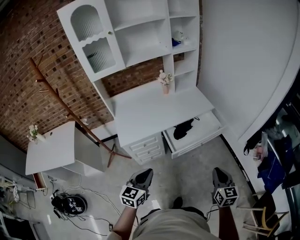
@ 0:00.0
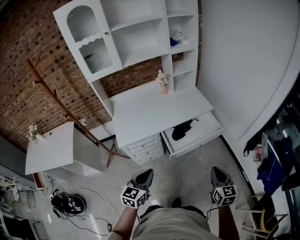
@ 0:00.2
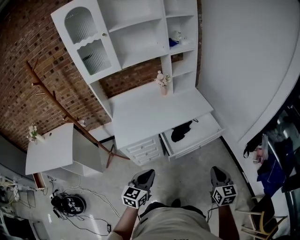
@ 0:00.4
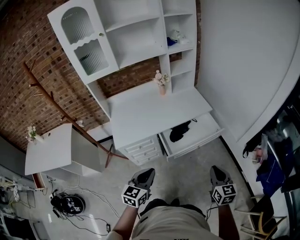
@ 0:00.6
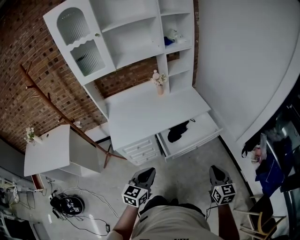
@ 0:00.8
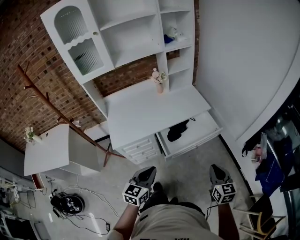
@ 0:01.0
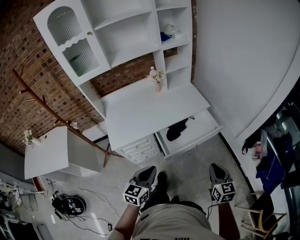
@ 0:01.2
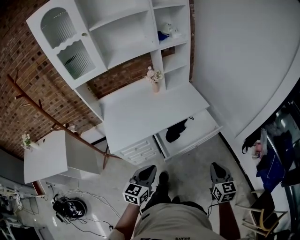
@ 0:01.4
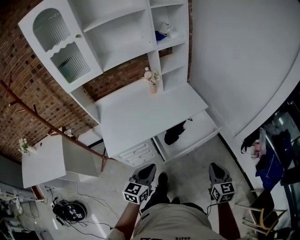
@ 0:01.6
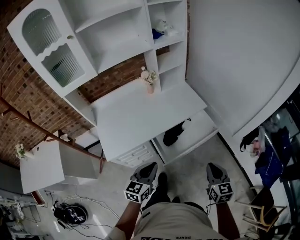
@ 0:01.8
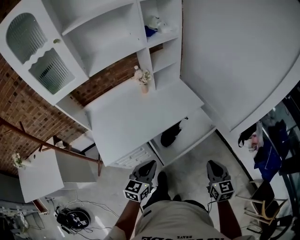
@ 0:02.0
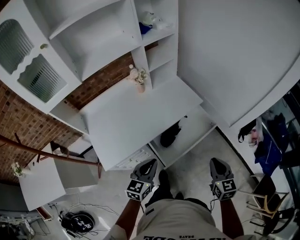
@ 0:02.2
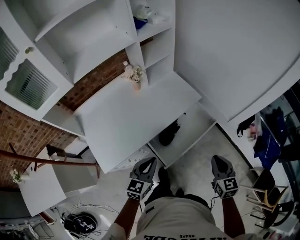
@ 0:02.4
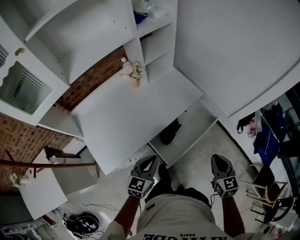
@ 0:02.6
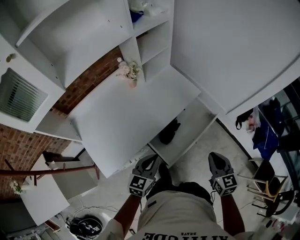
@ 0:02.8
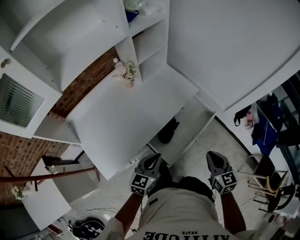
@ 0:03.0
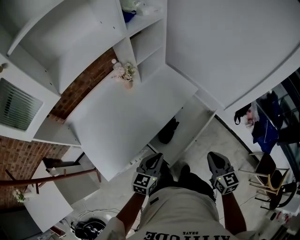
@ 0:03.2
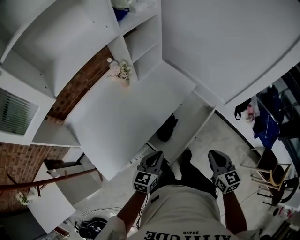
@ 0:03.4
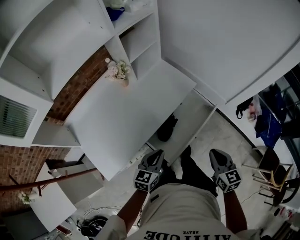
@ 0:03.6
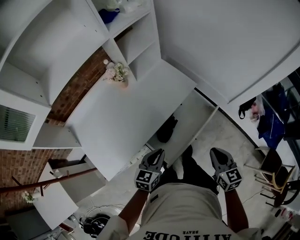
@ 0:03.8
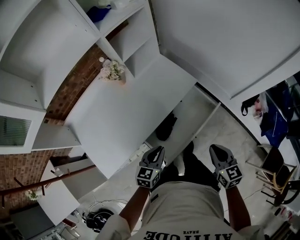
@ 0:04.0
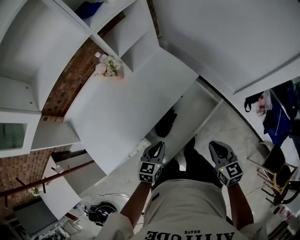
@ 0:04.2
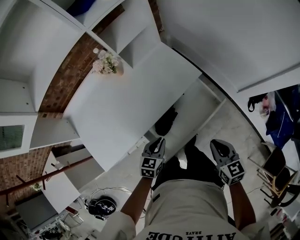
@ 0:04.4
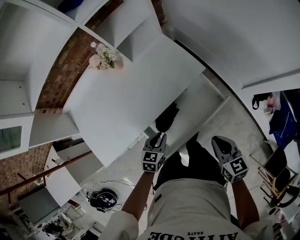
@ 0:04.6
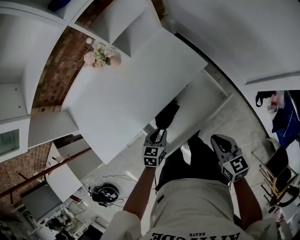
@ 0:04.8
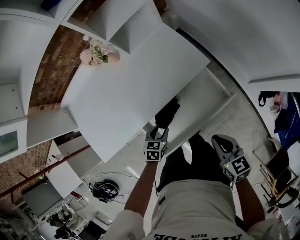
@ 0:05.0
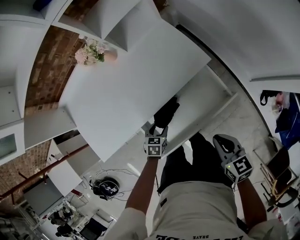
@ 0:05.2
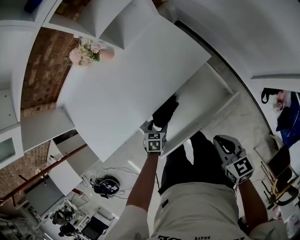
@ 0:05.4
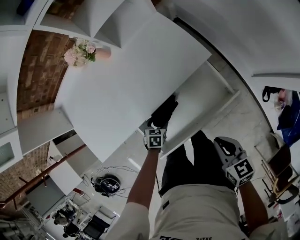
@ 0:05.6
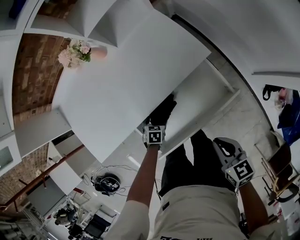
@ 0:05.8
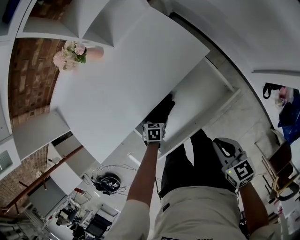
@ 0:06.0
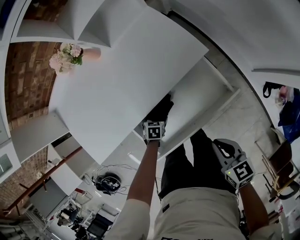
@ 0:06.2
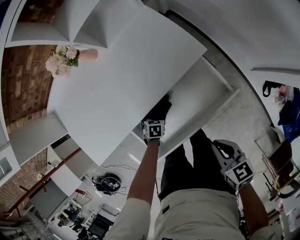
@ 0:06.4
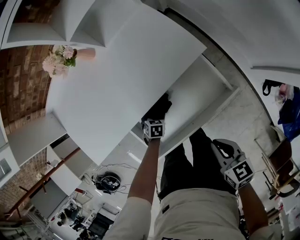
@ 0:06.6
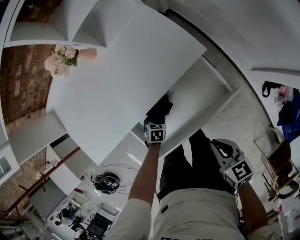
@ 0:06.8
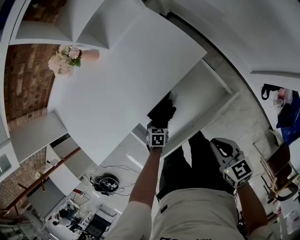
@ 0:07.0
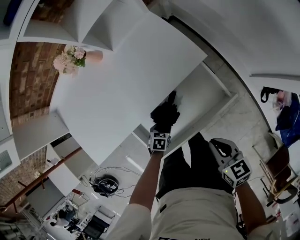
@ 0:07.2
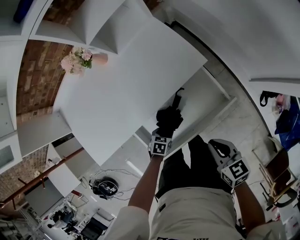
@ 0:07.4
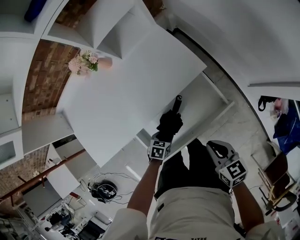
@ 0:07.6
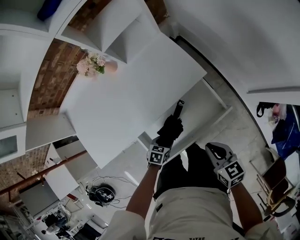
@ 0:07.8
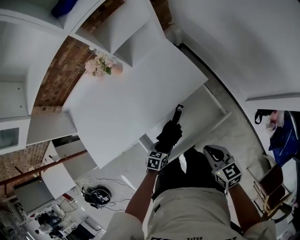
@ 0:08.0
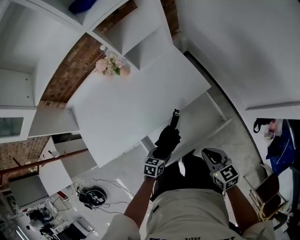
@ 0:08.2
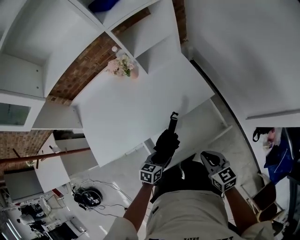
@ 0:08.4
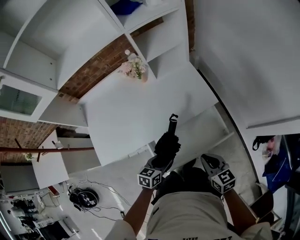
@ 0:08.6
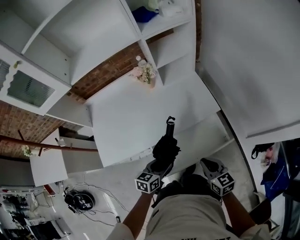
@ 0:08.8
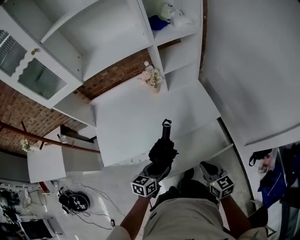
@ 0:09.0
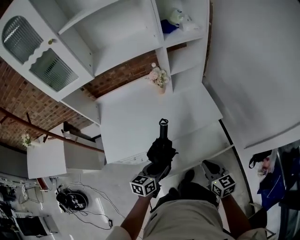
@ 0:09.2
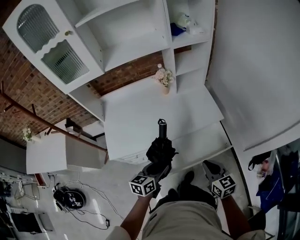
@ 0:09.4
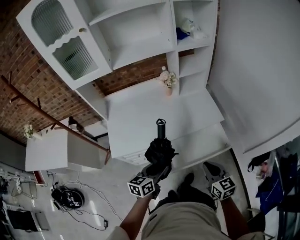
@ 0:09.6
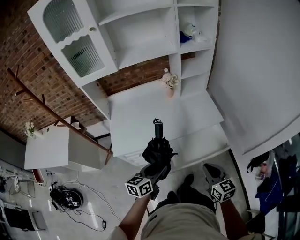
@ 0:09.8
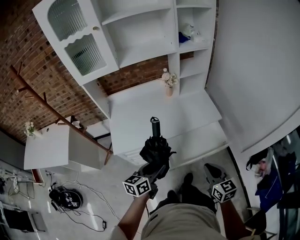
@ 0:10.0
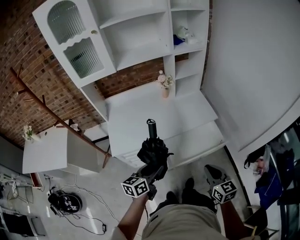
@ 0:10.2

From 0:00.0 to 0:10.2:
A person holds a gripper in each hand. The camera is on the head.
From 0:00.0 to 0:01.4: The right gripper heads forward, covering some 10 cm. Meanwhile the left gripper goes approximately 15 cm forward and to the right.
From 0:01.4 to 0:03.0: The left gripper goes approximately 20 cm forward, and turns by roughly 20 degrees. Meanwhile the right gripper goes roughly 15 cm forward and to the left.
From 0:03.0 to 0:04.4: The right gripper shifts about 15 cm forward, downward and to the right. Meanwhile the left gripper travels downward, forward and to the right by about 20 cm, and rotates roughly 20 degrees.
From 0:04.4 to 0:05.8: The right gripper is displaced downward by roughly 10 cm. The left gripper shifts some 25 cm downward, tips its fingers downward by about 30 degrees, and opens.
From 0:05.8 to 0:07.2: The left gripper shifts by roughly 5 cm, and closes its fingers.
From 0:07.2 to 0:08.8: The left gripper shifts roughly 30 cm upward, and points its fingers about 40 degrees further upward. The right gripper travels upward and to the left by approximately 15 cm.
From 0:08.8 to 0:10.2: The right gripper goes about 20 cm backward and upward; the left gripper shifts approximately 25 cm backward, upward and to the left, and rotates about 20 degrees.

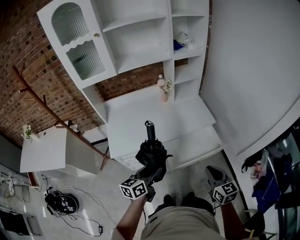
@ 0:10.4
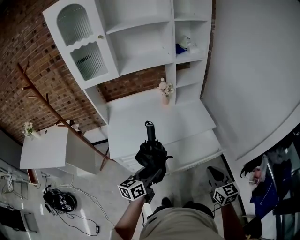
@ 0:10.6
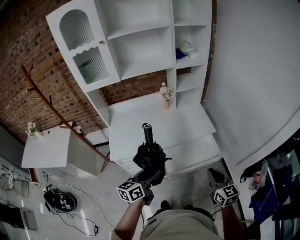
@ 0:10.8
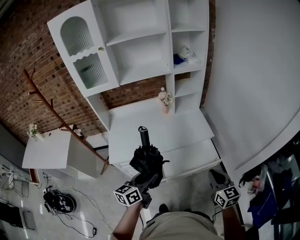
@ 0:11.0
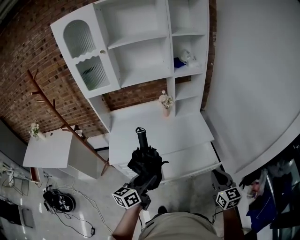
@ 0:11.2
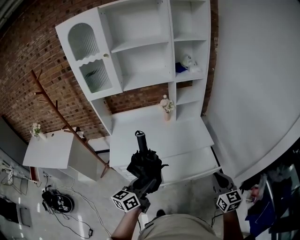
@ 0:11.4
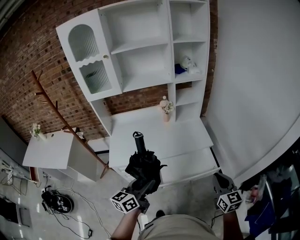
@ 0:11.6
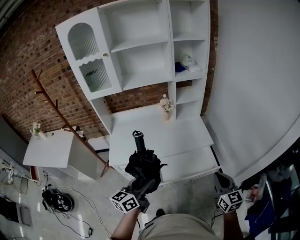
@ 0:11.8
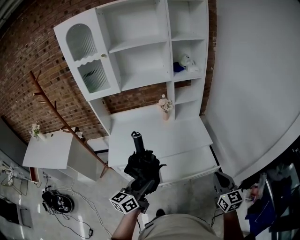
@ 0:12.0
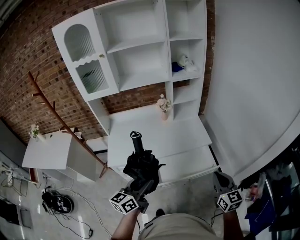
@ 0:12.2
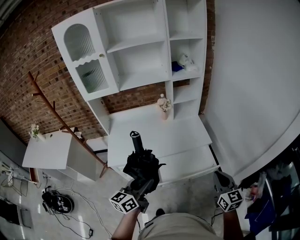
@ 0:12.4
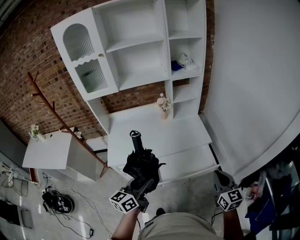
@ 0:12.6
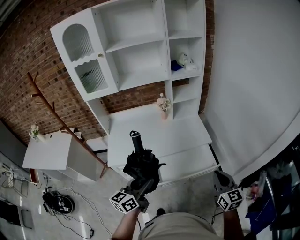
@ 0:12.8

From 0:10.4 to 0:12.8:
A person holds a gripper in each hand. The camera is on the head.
From 0:10.4 to 0:11.6: The left gripper goes roughly 10 cm upward. Meanwhile the right gripper is displaced to the right and upward by about 10 cm.
From 0:11.6 to 0:12.8: The two grippers keep their place.

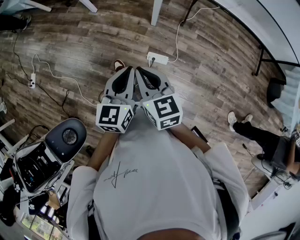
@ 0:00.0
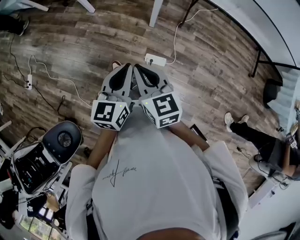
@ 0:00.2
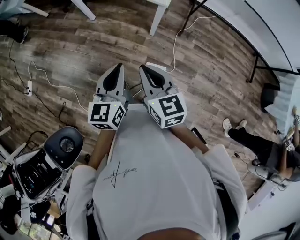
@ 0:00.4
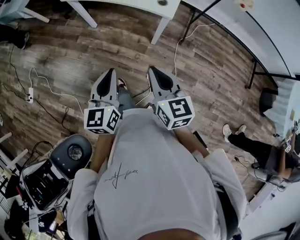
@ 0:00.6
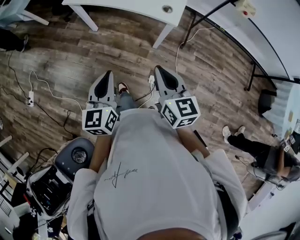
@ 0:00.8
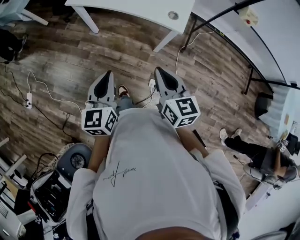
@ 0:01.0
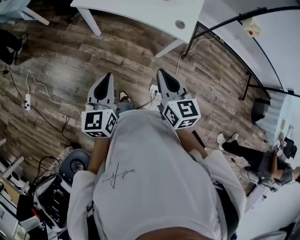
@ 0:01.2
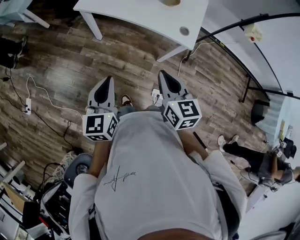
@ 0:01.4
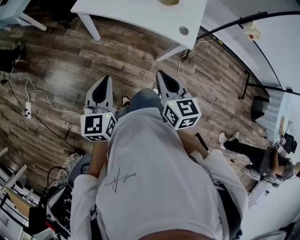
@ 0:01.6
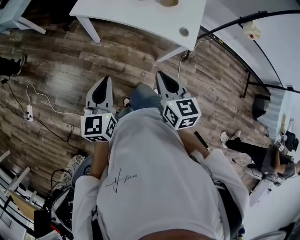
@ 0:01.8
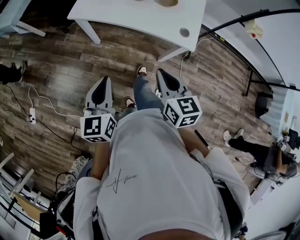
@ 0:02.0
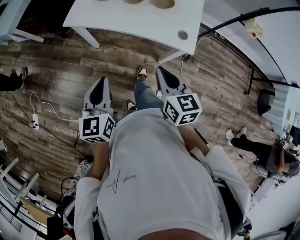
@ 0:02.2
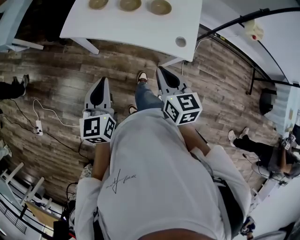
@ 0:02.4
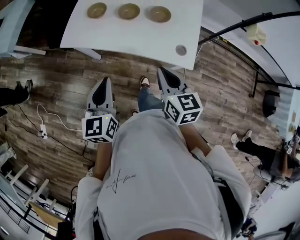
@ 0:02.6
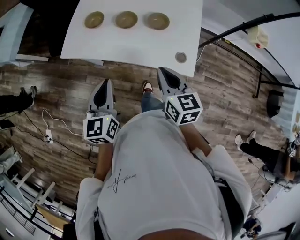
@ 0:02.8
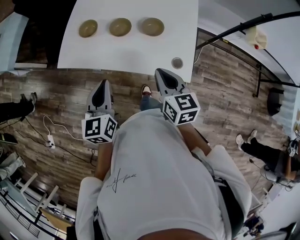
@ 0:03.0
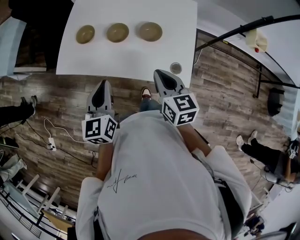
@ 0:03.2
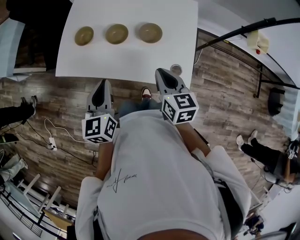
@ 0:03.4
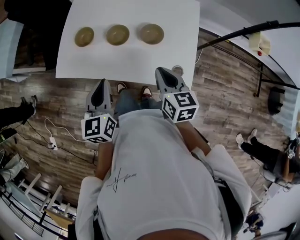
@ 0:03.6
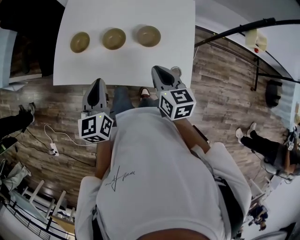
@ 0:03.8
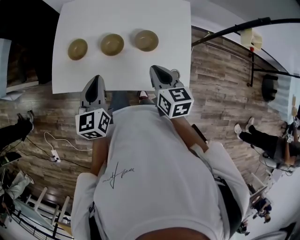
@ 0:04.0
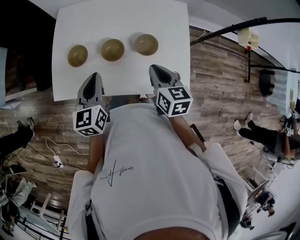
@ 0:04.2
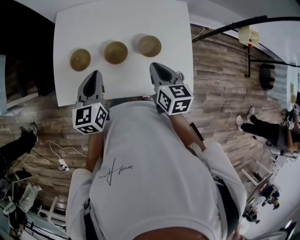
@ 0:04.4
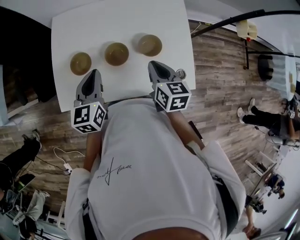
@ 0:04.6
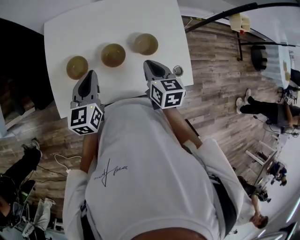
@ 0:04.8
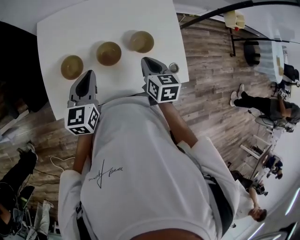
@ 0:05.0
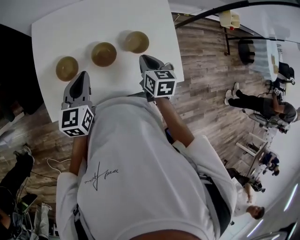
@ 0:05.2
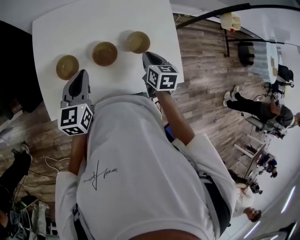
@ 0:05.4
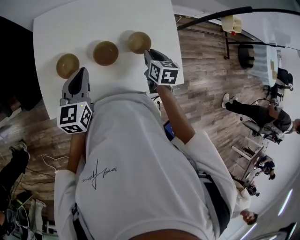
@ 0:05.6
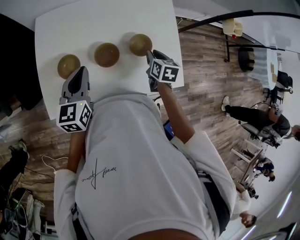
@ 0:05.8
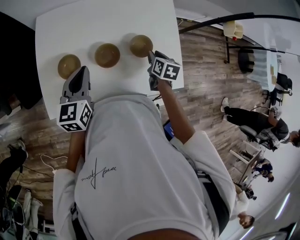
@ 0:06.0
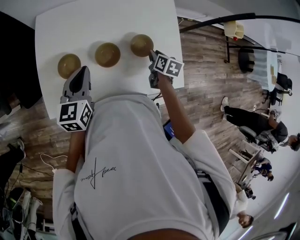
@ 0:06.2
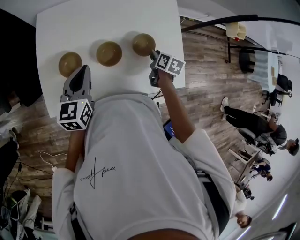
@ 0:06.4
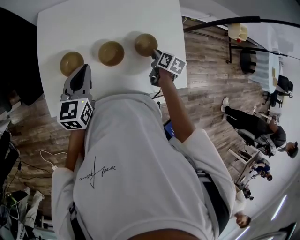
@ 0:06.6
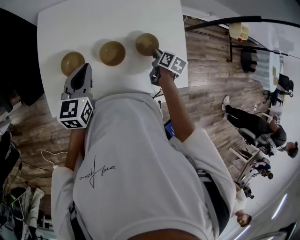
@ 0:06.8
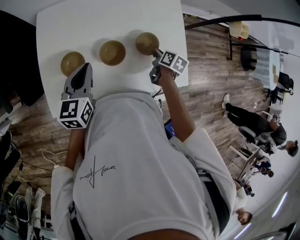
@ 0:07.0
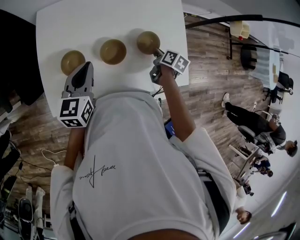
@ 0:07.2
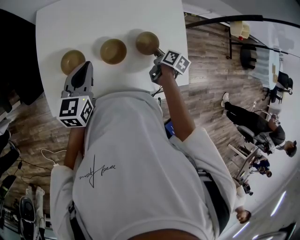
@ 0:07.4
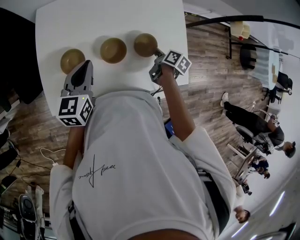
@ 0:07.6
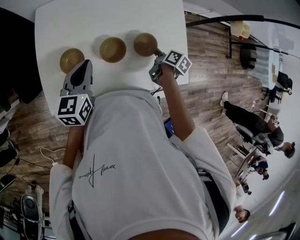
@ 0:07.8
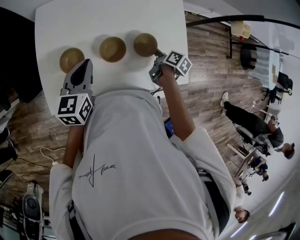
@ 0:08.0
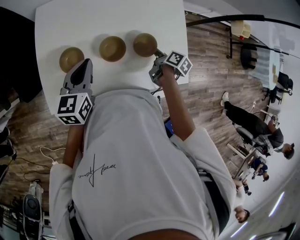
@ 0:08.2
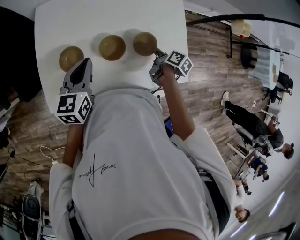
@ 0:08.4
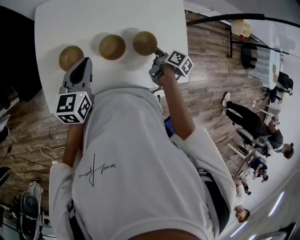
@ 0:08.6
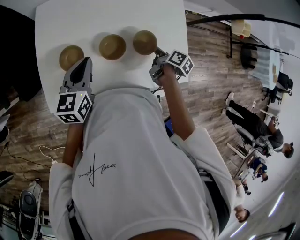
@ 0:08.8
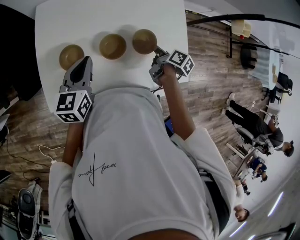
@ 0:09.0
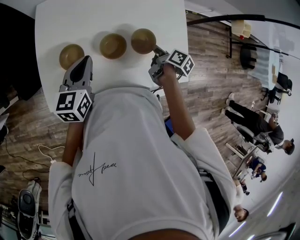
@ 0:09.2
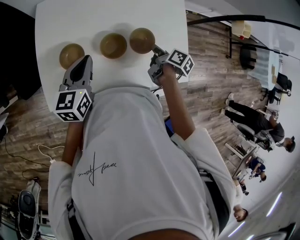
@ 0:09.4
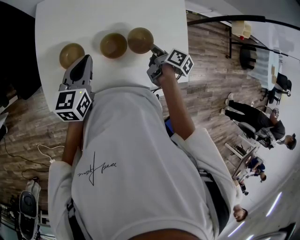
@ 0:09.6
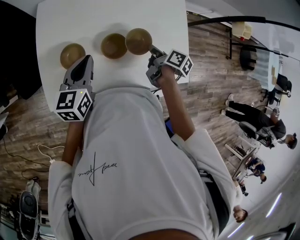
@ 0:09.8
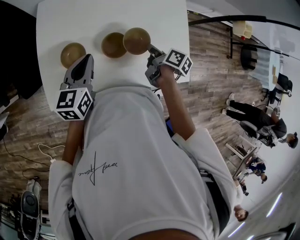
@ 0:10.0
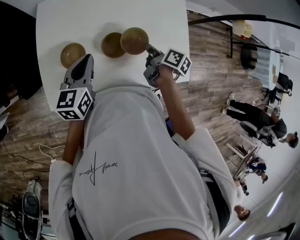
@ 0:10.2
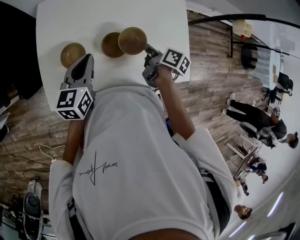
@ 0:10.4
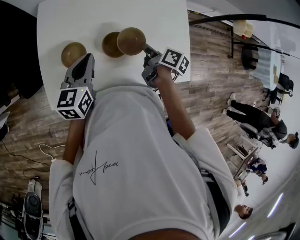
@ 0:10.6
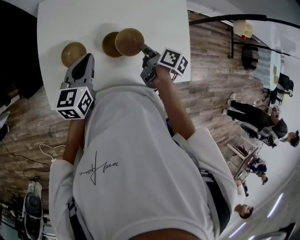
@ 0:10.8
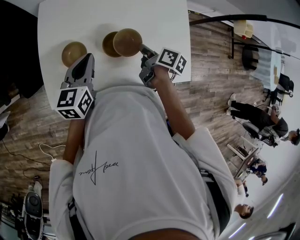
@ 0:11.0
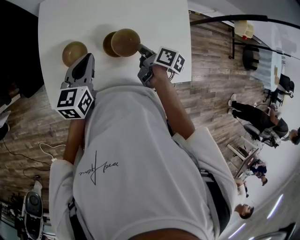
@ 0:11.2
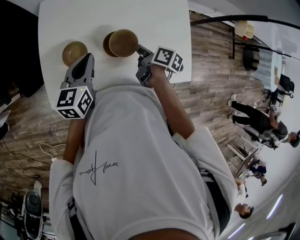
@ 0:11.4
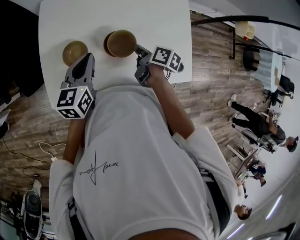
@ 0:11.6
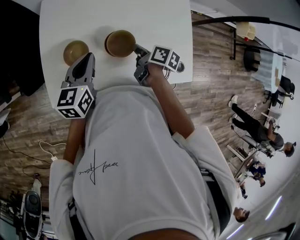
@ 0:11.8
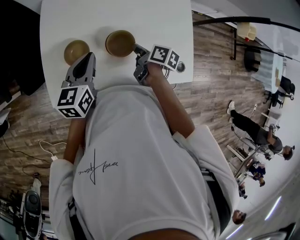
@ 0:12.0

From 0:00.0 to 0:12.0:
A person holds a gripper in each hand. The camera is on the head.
From 0:00.0 to 0:01.6: Both grippers travel together forward and to the left, approximately 35 cm.
From 0:01.6 to 0:03.0: Both grippers travel together forward, approximately 25 cm.
From 0:03.0 to 0:04.4: The grippers both shift forward by approximately 15 cm.
From 0:04.4 to 0:06.0: The right gripper goes approximately 15 cm downward, forward and to the right, rotates roughly 30 degrees, and opens its fingers, while the left gripper changes place by approximately 5 cm.
From 0:06.0 to 0:07.6: The right gripper changes its angle by some 30 degrees.
From 0:07.6 to 0:09.0: The grippers stay close to where they were, moving slightly.
From 0:09.0 to 0:10.4: The right gripper travels to the left by roughly 5 cm.
From 0:10.4 to 0:12.0: The right gripper heads to the left, covering roughly 5 cm.
